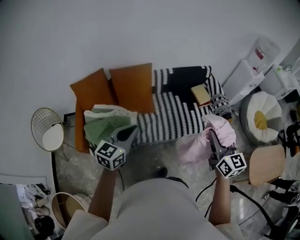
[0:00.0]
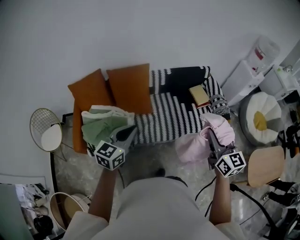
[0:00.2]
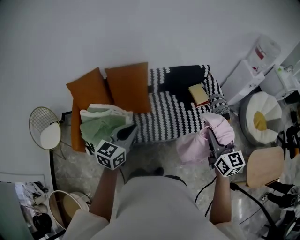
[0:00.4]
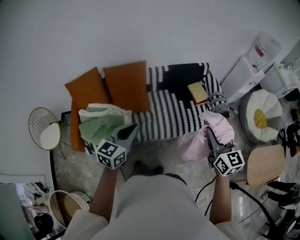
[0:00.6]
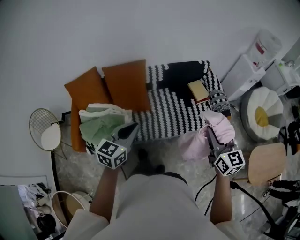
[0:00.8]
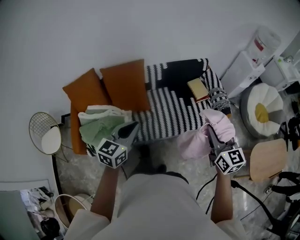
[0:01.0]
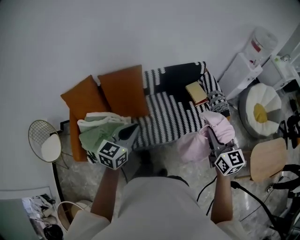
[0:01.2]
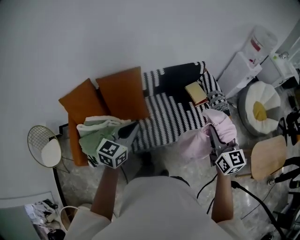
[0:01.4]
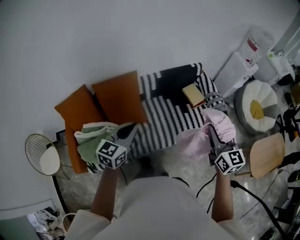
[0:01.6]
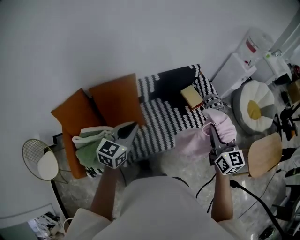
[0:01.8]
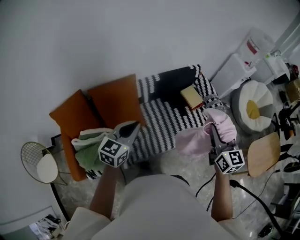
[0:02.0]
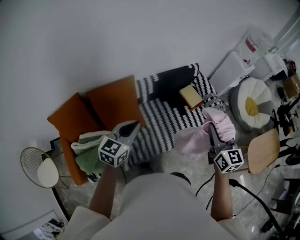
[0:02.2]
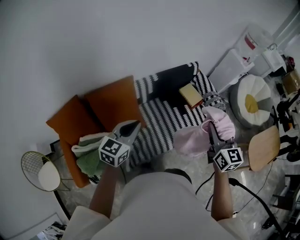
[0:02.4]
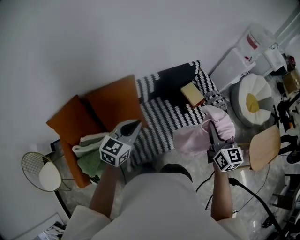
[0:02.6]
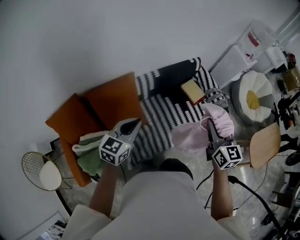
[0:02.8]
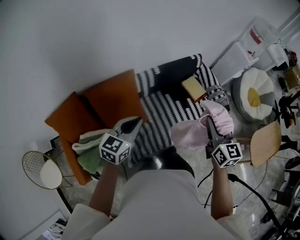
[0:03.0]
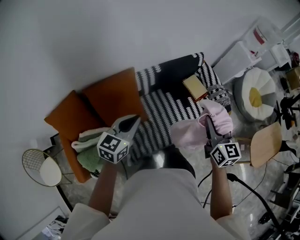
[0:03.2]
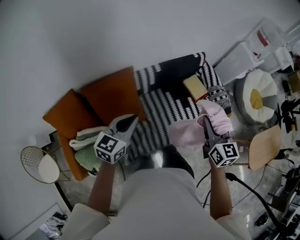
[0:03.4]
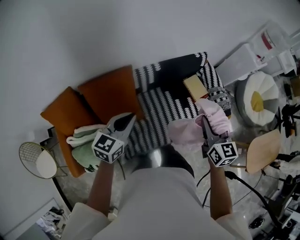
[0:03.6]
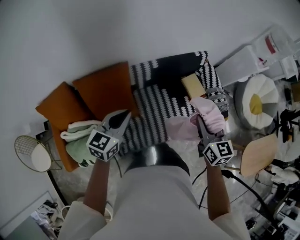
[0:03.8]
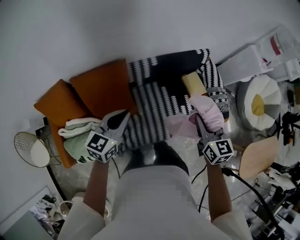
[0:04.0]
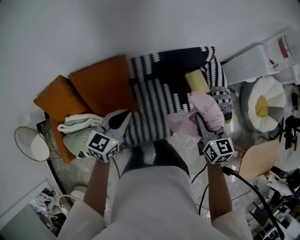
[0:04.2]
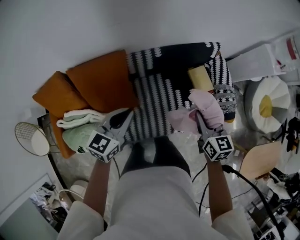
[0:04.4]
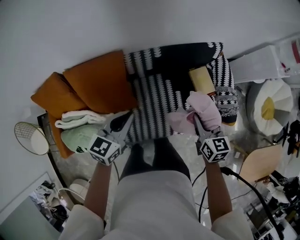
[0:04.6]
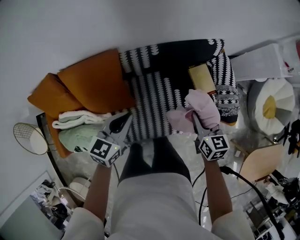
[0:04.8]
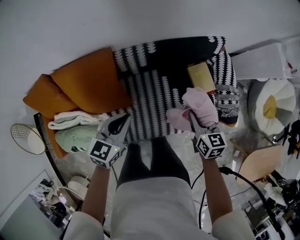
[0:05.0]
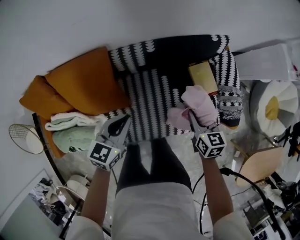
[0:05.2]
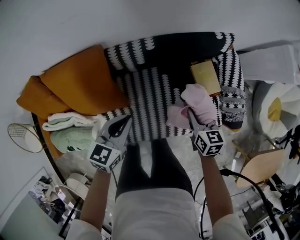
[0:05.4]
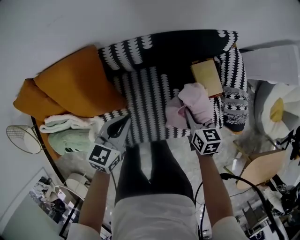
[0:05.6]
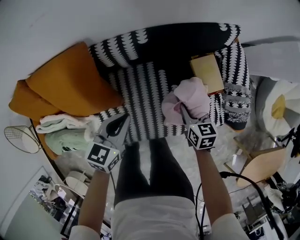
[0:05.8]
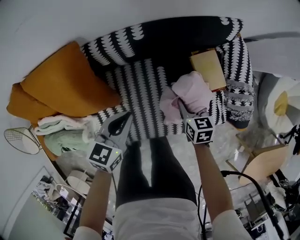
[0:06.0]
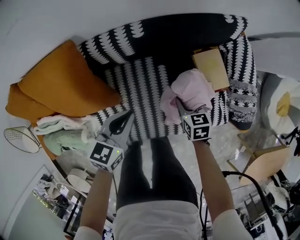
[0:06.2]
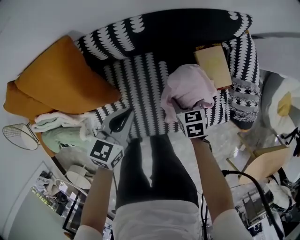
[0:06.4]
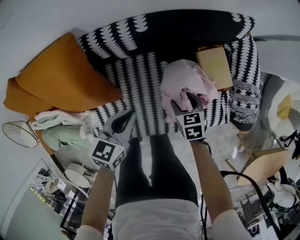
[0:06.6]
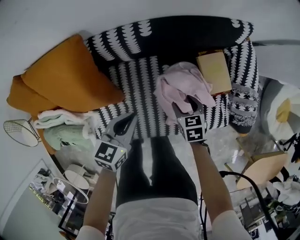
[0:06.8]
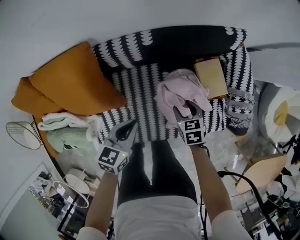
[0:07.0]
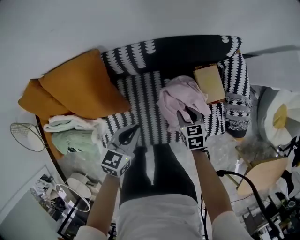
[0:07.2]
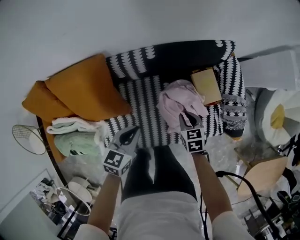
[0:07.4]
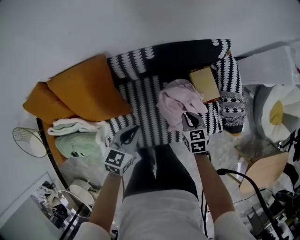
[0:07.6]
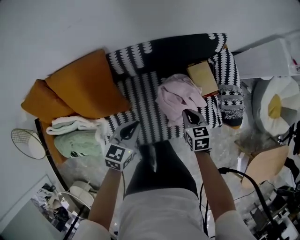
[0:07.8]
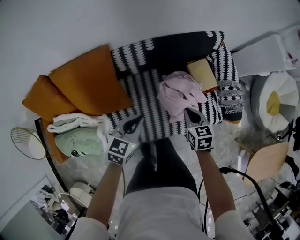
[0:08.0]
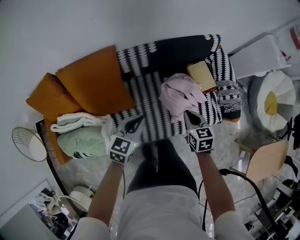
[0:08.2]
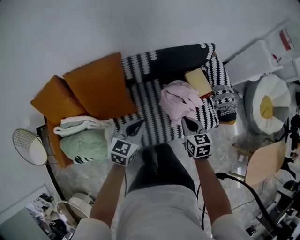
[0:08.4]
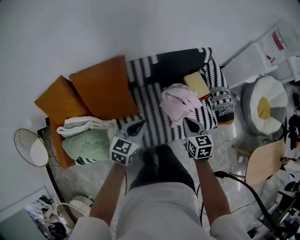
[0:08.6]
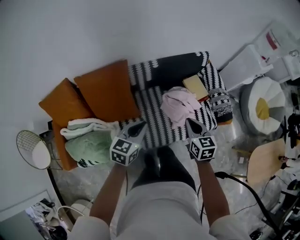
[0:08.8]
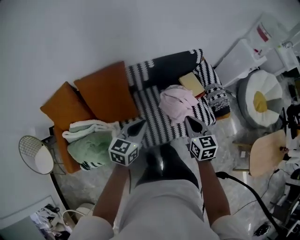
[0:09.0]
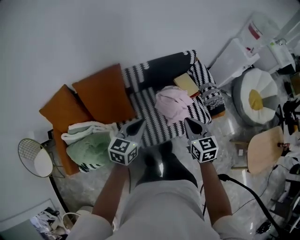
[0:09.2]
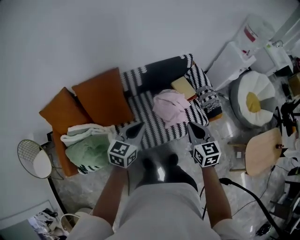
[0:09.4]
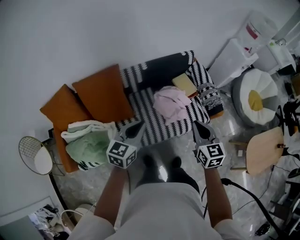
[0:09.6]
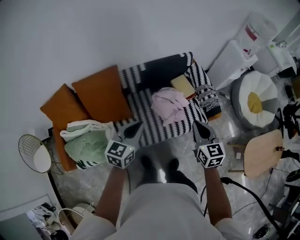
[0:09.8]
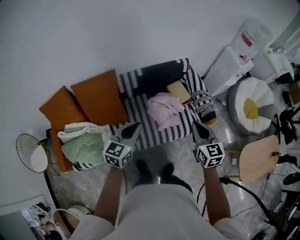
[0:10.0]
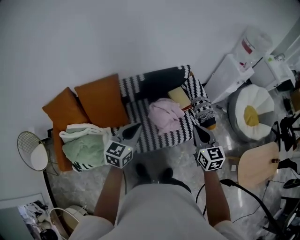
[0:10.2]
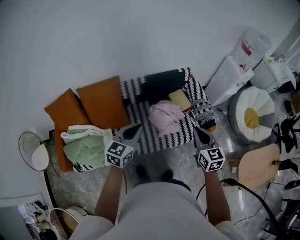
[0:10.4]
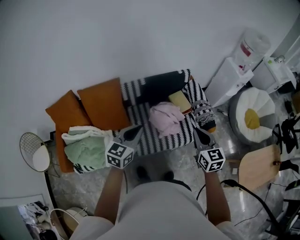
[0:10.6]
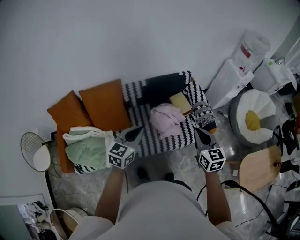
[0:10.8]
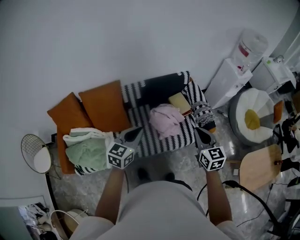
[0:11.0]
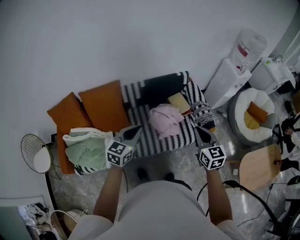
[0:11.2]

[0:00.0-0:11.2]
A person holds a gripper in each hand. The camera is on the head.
0:00.0 to 0:01.6: Both grippers move forward, roughly 15 cm.
0:01.6 to 0:03.2: The left gripper travels forward and to the left by about 20 cm, while the right gripper shifts approximately 20 cm forward, to the left and downward.
0:03.2 to 0:04.8: The right gripper moves downward and forward, approximately 30 cm, and turns by approximately 30 degrees; the left gripper goes approximately 25 cm forward, downward and to the right.
0:04.8 to 0:06.4: The two grippers go some 30 cm downward. The right gripper changes its angle by roughly 30 degrees, and opens.
0:06.4 to 0:08.0: Both grippers travel together upward and backward, about 20 cm. The right gripper closes up.
0:08.0 to 0:09.6: Both grippers move upward and backward, approximately 35 cm. The right gripper turns by some 30 degrees.
0:09.6 to 0:11.2: The two grippers go roughly 10 cm to the right and upward.

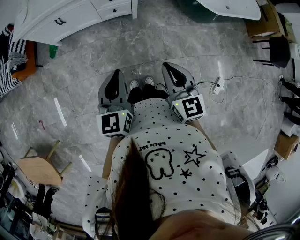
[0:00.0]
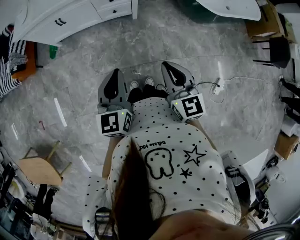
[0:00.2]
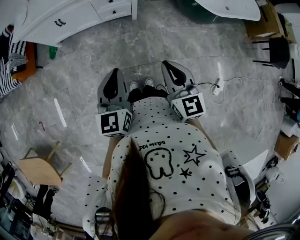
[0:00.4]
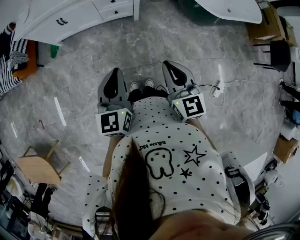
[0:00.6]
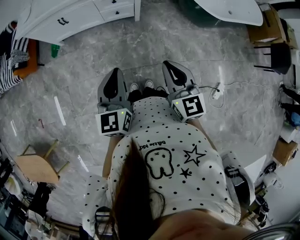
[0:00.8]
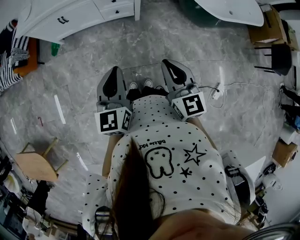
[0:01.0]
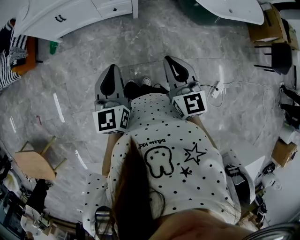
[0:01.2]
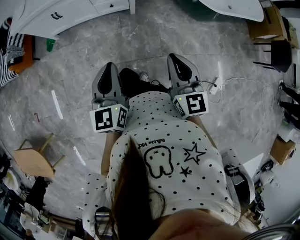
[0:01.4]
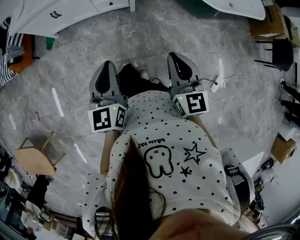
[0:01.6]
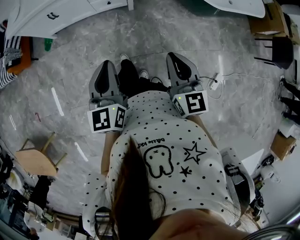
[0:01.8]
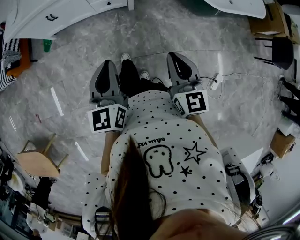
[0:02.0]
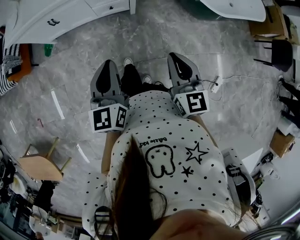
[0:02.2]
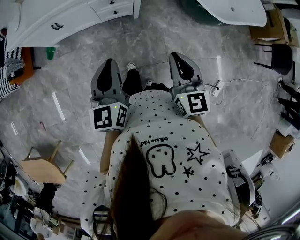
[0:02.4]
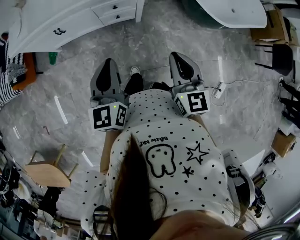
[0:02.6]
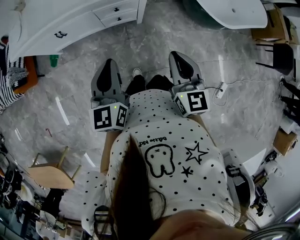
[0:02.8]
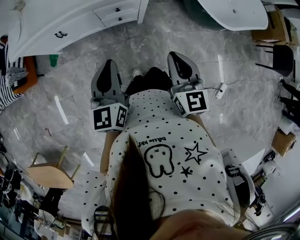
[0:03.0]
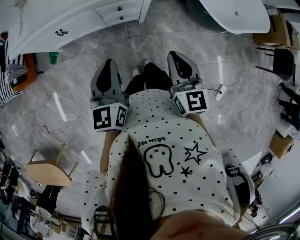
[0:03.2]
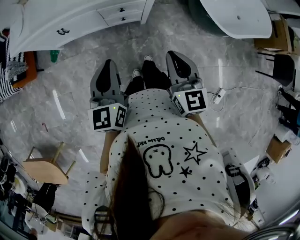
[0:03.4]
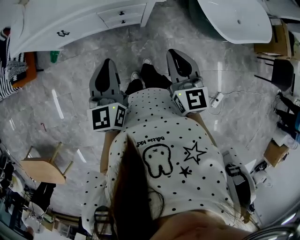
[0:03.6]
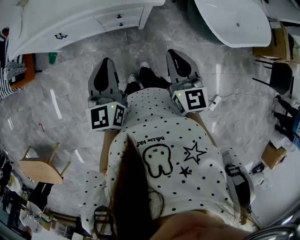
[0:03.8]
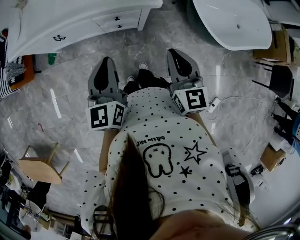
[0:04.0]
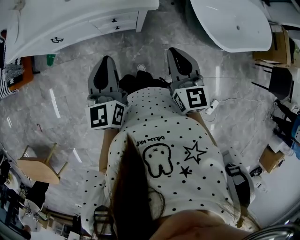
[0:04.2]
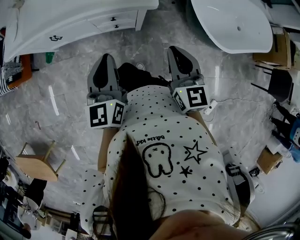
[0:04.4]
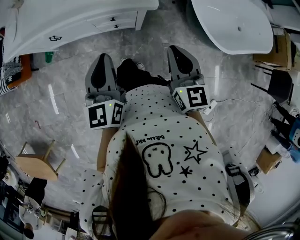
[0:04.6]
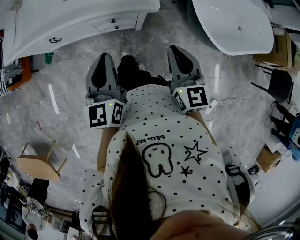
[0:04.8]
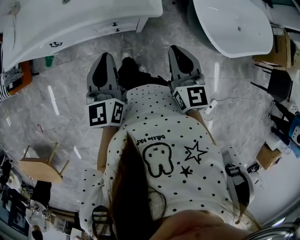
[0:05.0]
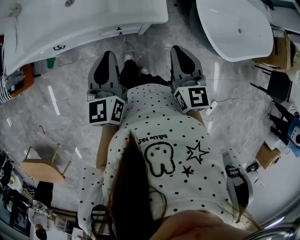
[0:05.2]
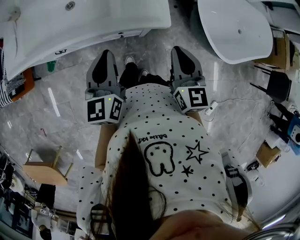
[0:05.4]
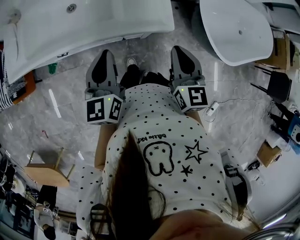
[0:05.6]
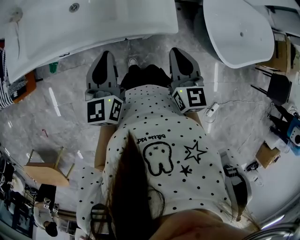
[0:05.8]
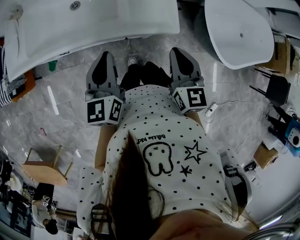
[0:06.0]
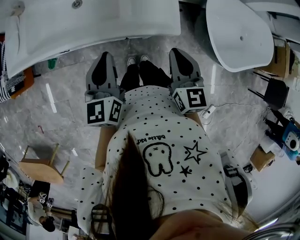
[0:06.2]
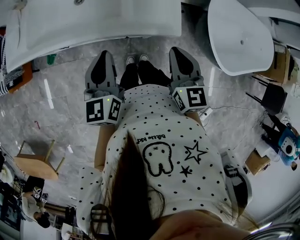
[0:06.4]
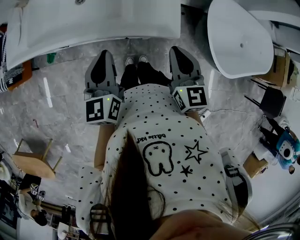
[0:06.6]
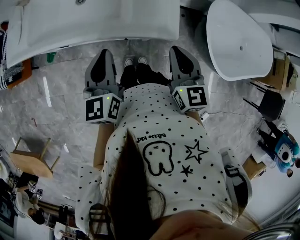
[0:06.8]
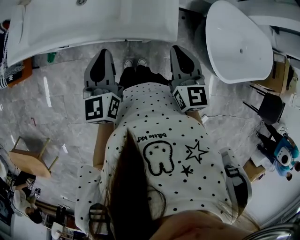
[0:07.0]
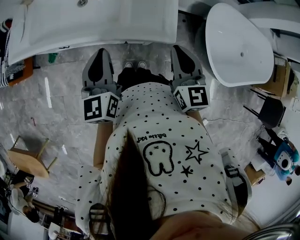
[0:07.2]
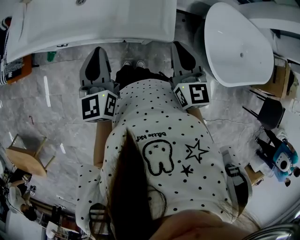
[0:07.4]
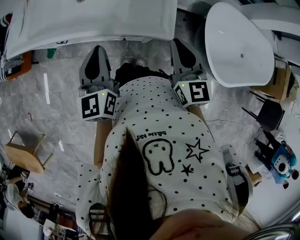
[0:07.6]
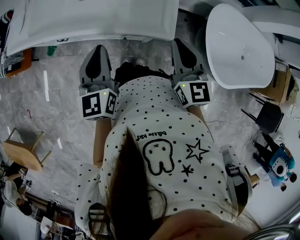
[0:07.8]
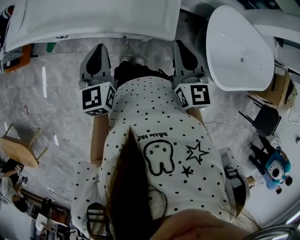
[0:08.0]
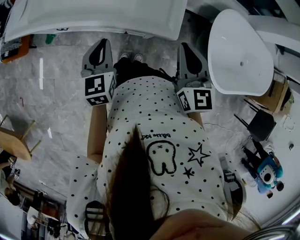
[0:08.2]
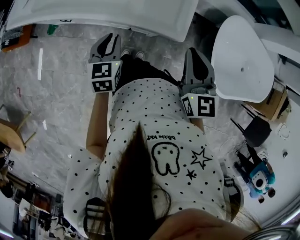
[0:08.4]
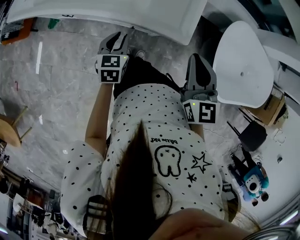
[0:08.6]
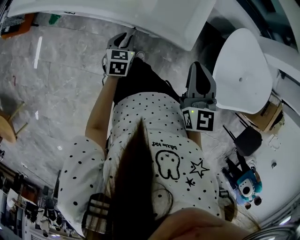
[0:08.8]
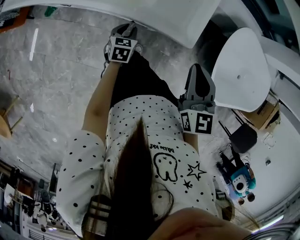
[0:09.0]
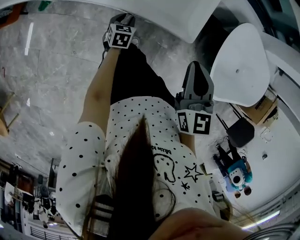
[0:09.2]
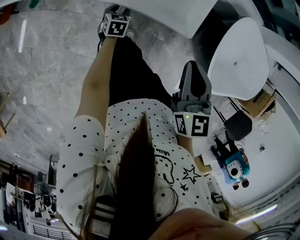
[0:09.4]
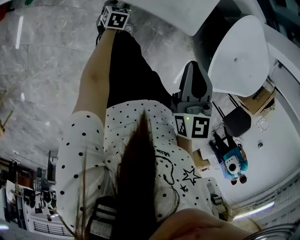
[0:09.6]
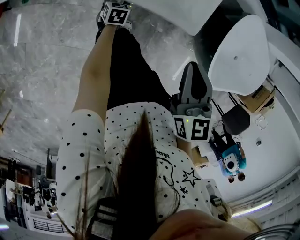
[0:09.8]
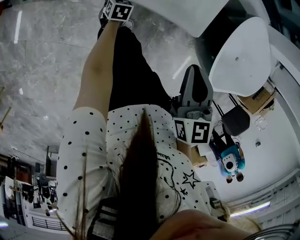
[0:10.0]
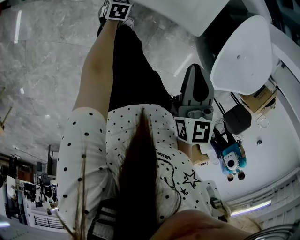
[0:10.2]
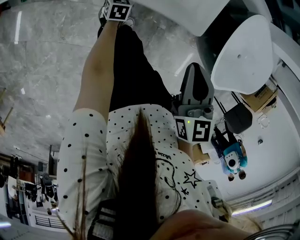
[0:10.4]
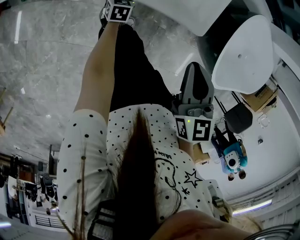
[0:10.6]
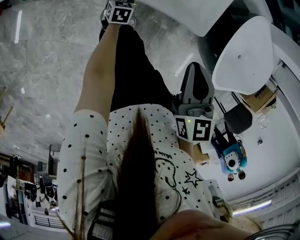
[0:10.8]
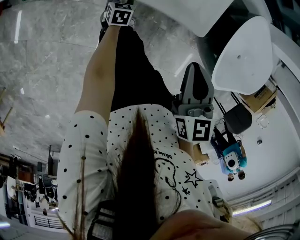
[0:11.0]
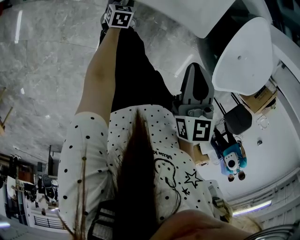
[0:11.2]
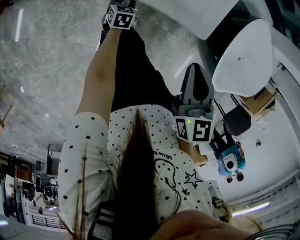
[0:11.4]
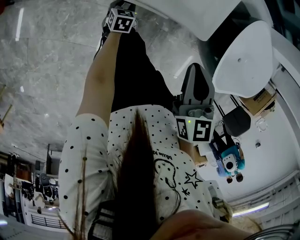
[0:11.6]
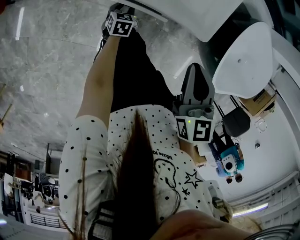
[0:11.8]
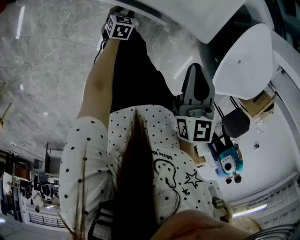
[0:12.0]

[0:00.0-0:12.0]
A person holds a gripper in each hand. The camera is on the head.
0:00.0 to 0:01.6: The right gripper shifts approximately 5 cm to the right.
0:01.6 to 0:03.0: Both grippers travel together forward and to the left, roughly 25 cm.
0:03.0 to 0:04.4: The grippers both shift forward and to the right by approximately 15 cm.
0:04.4 to 0:06.0: The right gripper heads forward, covering some 15 cm, while the left gripper goes about 20 cm forward and to the left.
0:06.0 to 0:07.6: The grippers make only small movements.
0:07.6 to 0:09.0: The right gripper travels downward by about 5 cm. Meanwhile the left gripper travels downward by approximately 35 cm, tilts its fingers about 40 degrees downward, and opens.
0:09.0 to 0:10.4: The right gripper travels downward by roughly 5 cm; the left gripper shifts roughly 15 cm downward.
0:10.4 to 0:12.0: The left gripper is displaced backward by some 10 cm.

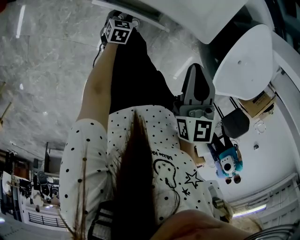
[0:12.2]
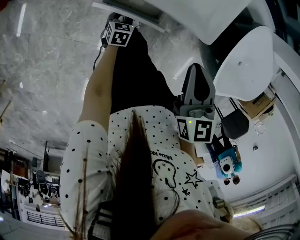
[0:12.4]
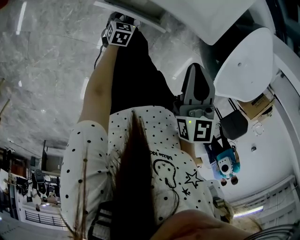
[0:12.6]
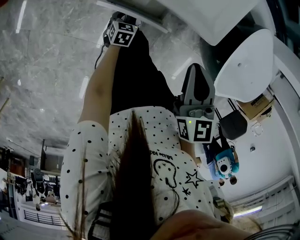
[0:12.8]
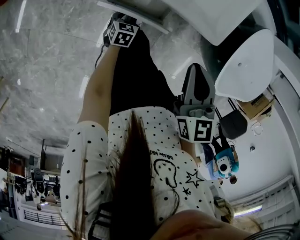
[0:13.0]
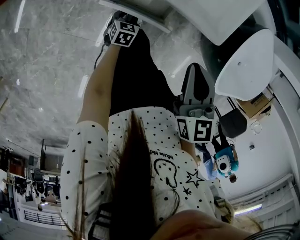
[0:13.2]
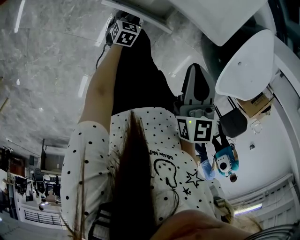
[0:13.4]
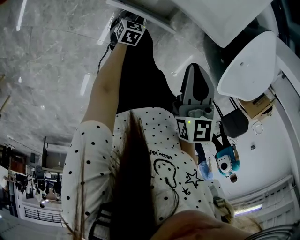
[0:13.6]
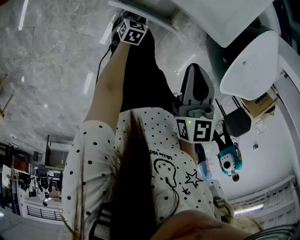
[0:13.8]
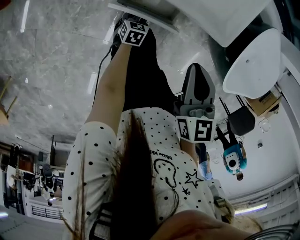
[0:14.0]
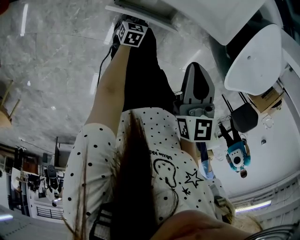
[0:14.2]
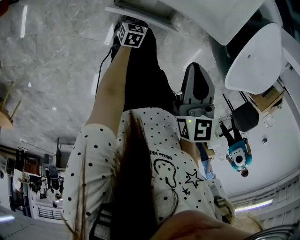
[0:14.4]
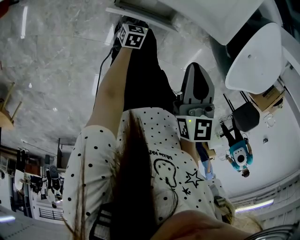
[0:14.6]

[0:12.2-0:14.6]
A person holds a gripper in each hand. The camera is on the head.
0:12.2 to 0:13.4: There are only small adjustments of the grippers.
0:13.4 to 0:14.6: The grippers stay close to where they were, moving slightly.
